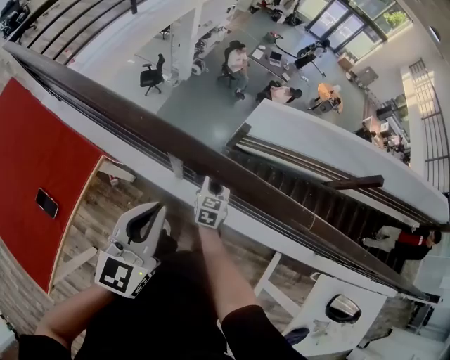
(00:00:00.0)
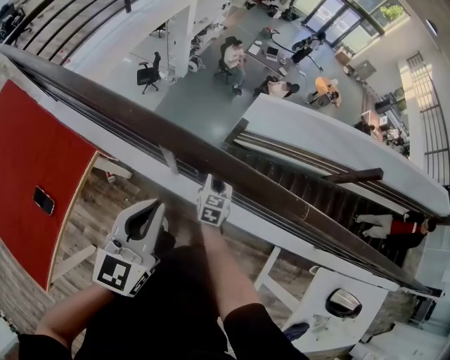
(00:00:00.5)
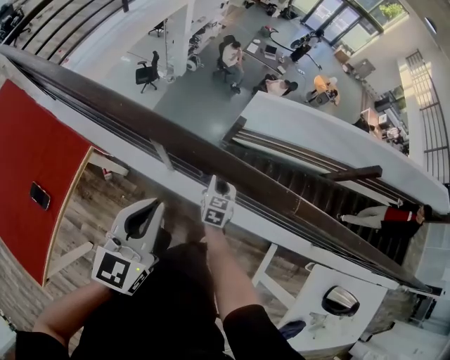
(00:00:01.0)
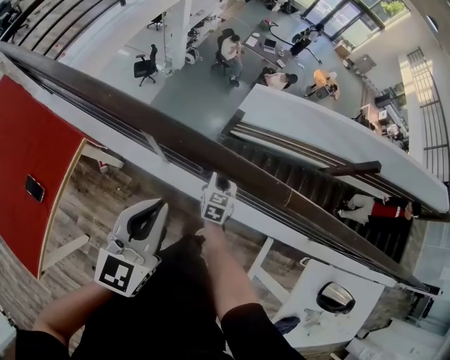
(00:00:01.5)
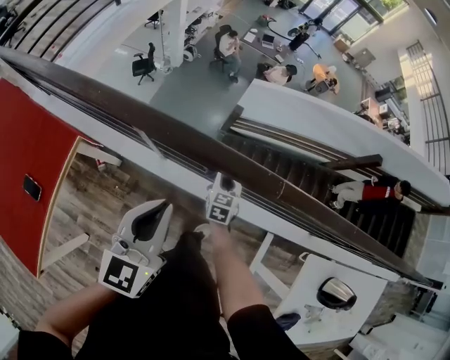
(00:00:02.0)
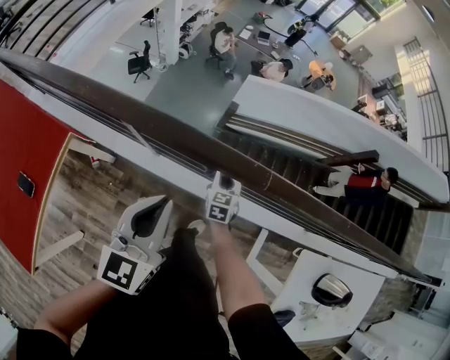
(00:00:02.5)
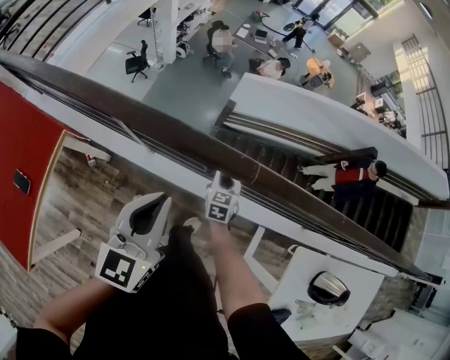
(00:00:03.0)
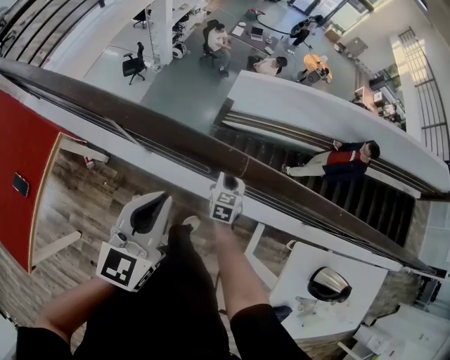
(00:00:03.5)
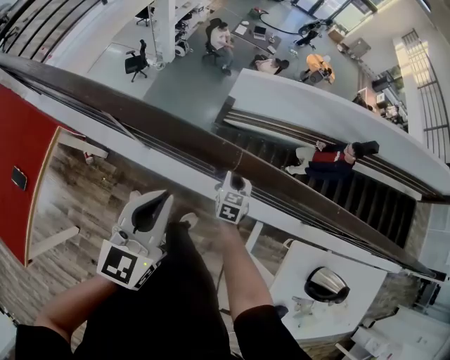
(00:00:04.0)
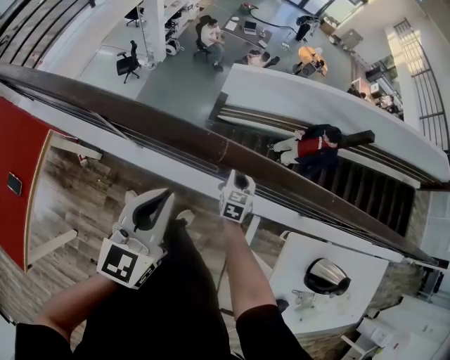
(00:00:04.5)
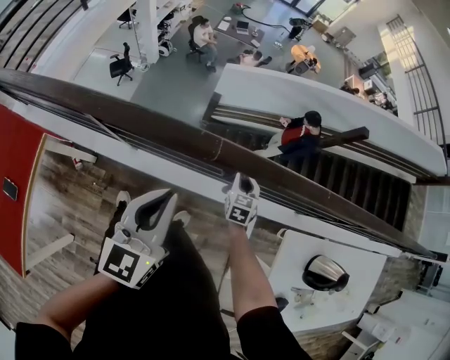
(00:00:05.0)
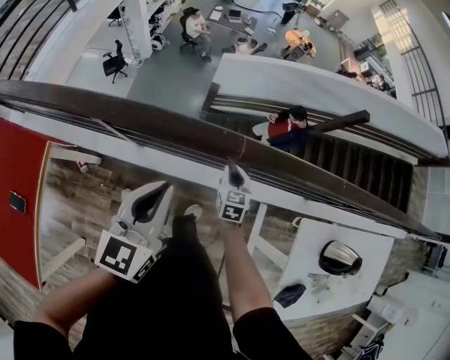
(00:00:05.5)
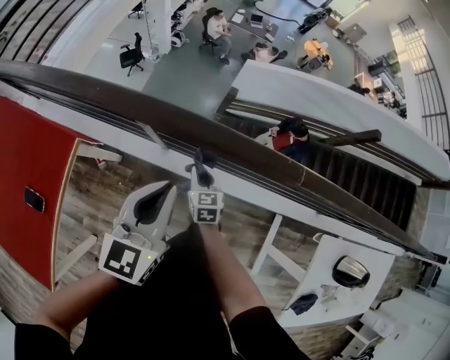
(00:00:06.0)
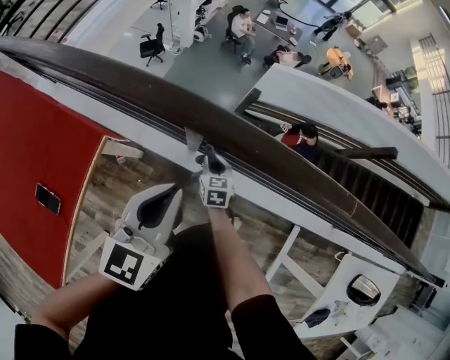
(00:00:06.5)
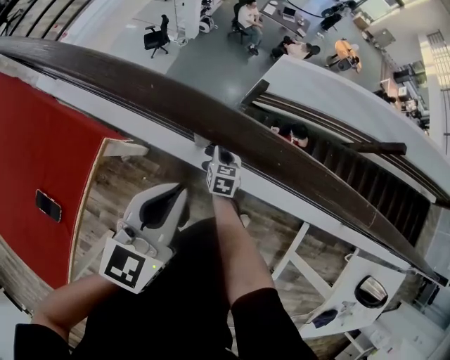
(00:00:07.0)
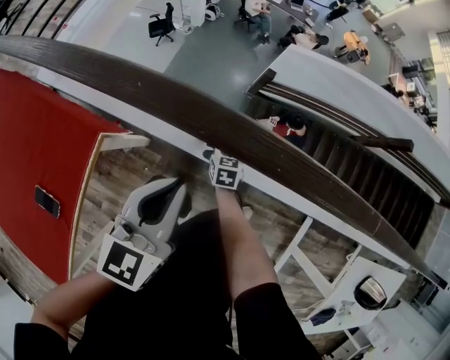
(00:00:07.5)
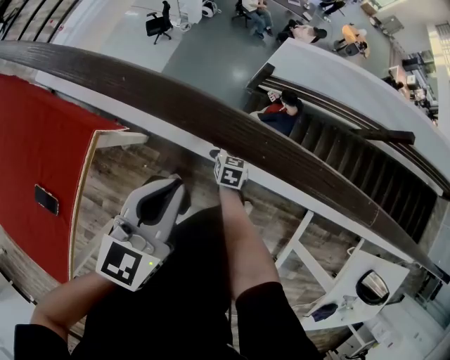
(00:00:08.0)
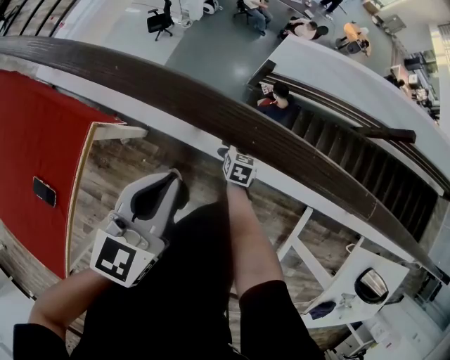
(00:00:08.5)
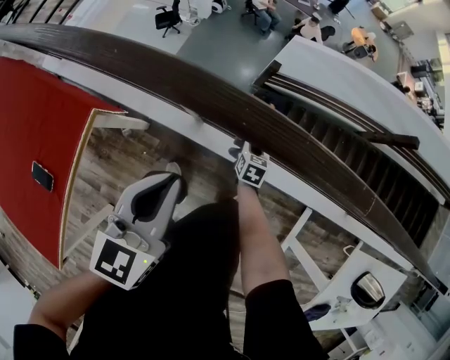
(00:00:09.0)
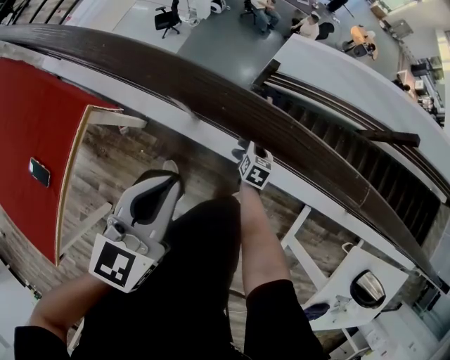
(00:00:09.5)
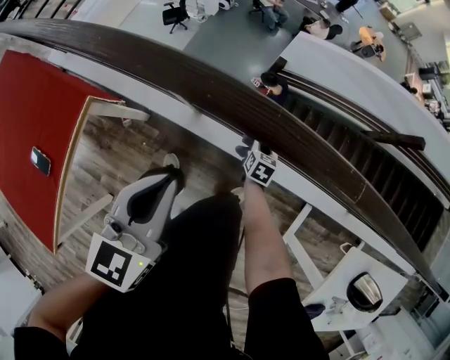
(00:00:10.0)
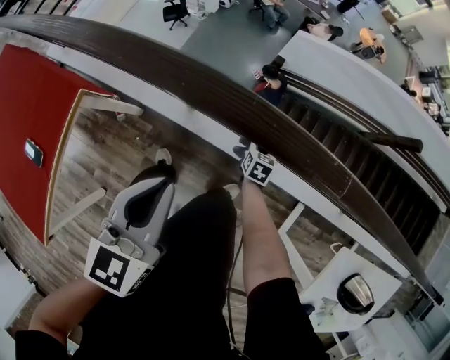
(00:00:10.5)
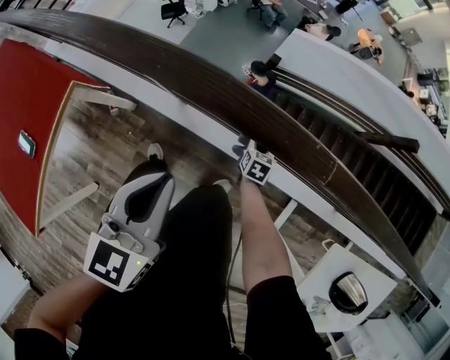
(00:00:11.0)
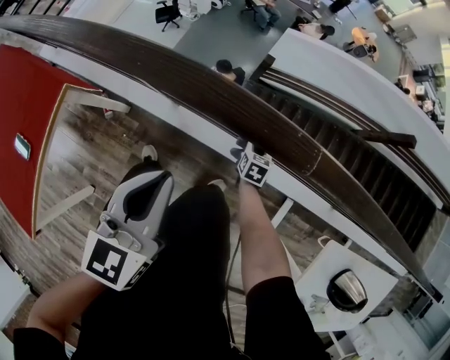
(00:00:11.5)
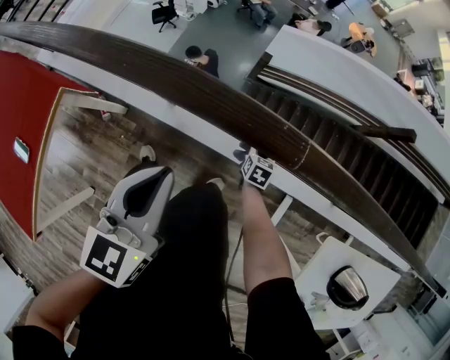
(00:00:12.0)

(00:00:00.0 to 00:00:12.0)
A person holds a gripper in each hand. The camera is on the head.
00:00:00.0 - 00:00:02.0: Both grippers travel together to the right, some 15 cm.
00:00:02.0 - 00:00:04.0: Both grippers travel together to the right, approximately 10 cm.
00:00:04.0 - 00:00:06.0: The right gripper shifts about 25 cm to the left. The left gripper shifts roughly 15 cm to the left.
00:00:06.0 - 00:00:08.0: The left gripper is displaced to the left and downward by some 10 cm; the right gripper shifts roughly 15 cm downward and forward.
00:00:08.0 - 00:00:10.0: The left gripper is displaced to the right by approximately 5 cm, while the right gripper travels to the right by roughly 15 cm.
00:00:10.0 - 00:00:12.0: Both grippers travel together to the right, some 10 cm.

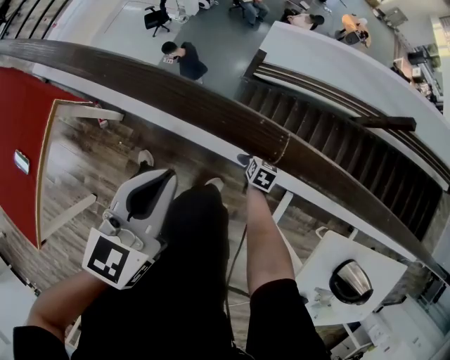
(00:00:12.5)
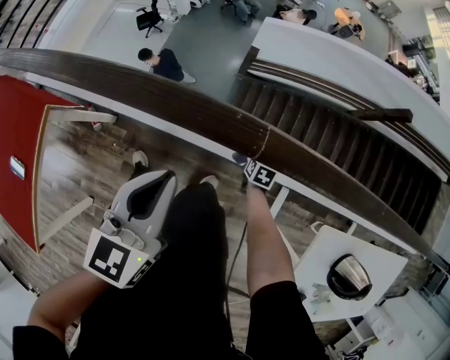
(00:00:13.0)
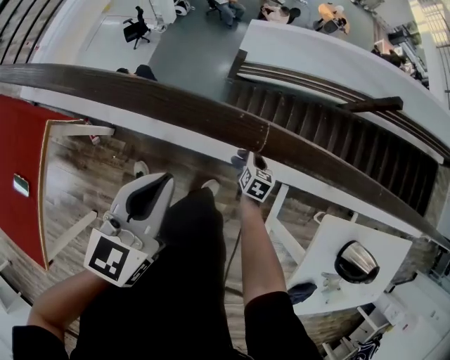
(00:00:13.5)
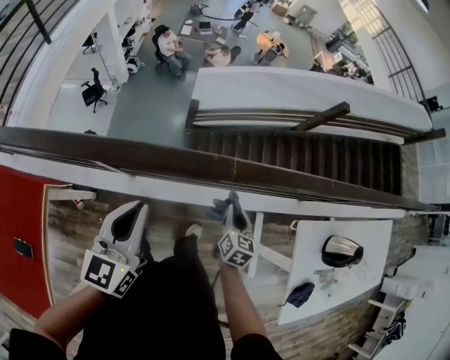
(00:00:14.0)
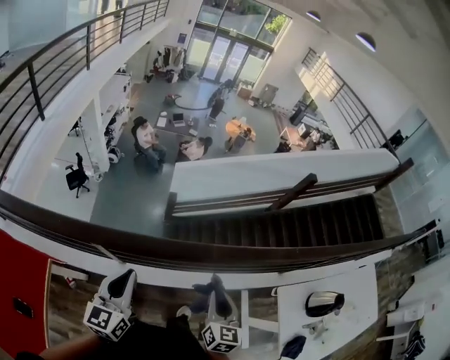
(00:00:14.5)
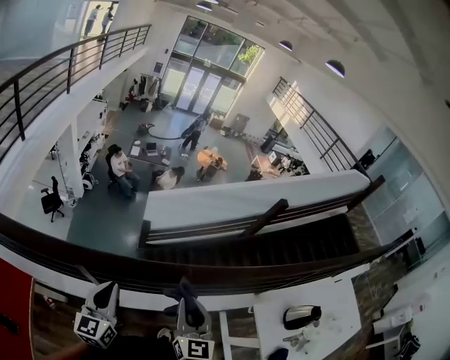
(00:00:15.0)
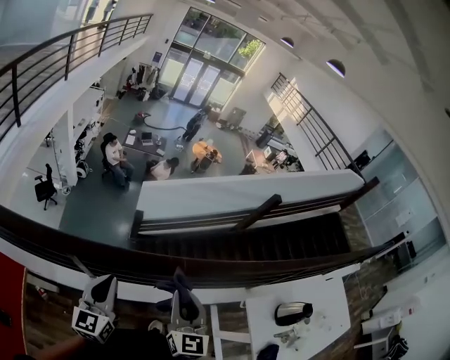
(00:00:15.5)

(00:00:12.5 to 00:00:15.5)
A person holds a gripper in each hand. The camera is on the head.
00:00:12.5 - 00:00:14.0: The left gripper moves some 5 cm; the right gripper shifts approximately 25 cm upward and backward, and rotates roughly 30 degrees.
00:00:14.0 - 00:00:15.5: The right gripper shifts approximately 25 cm upward, and tips its fingers upward by some 30 degrees.

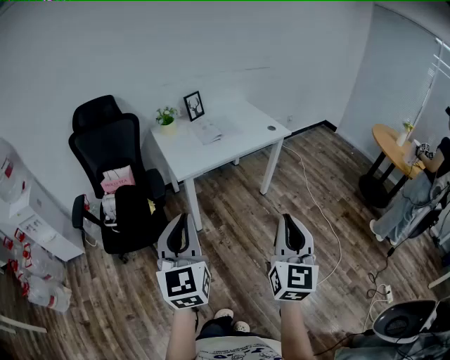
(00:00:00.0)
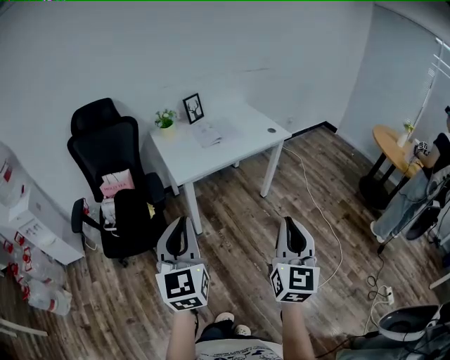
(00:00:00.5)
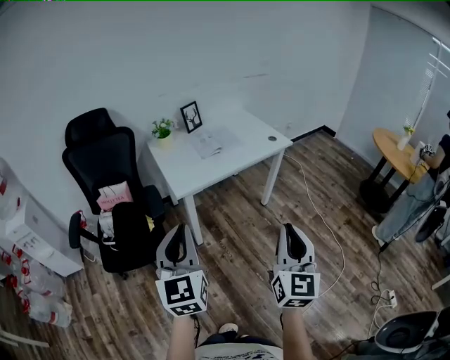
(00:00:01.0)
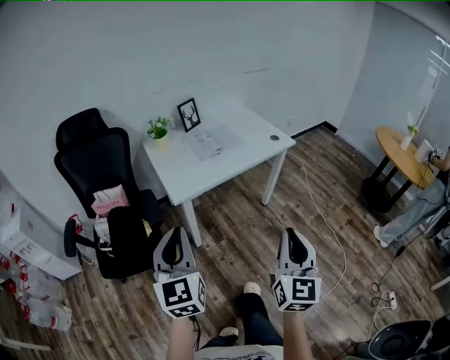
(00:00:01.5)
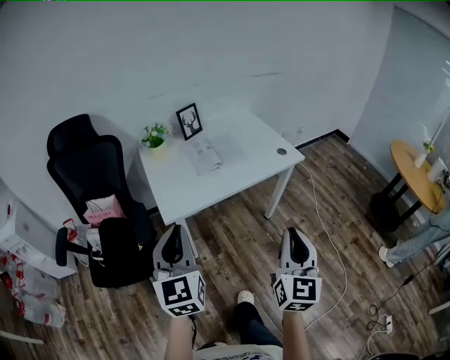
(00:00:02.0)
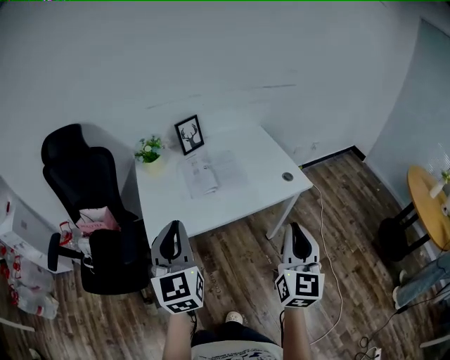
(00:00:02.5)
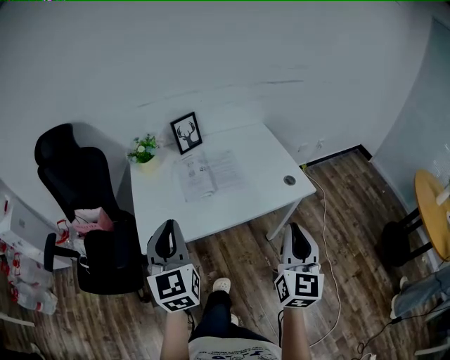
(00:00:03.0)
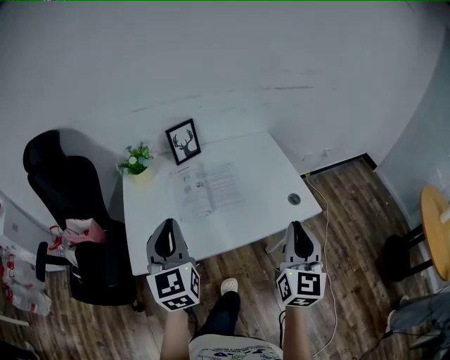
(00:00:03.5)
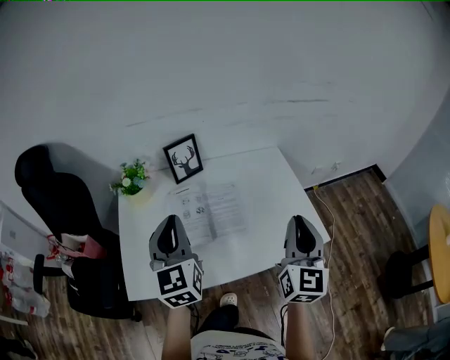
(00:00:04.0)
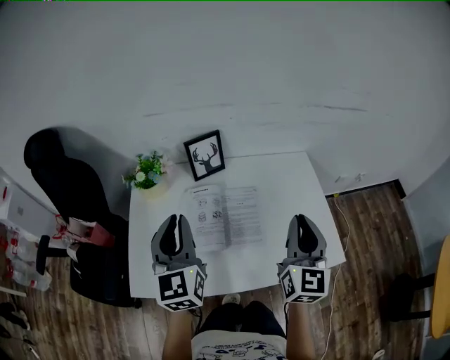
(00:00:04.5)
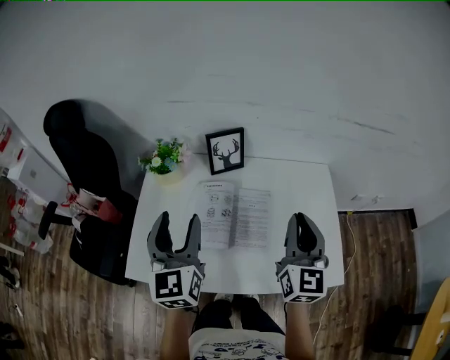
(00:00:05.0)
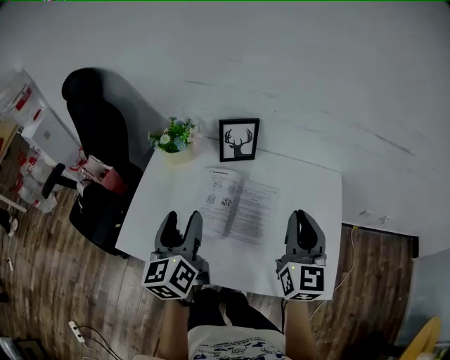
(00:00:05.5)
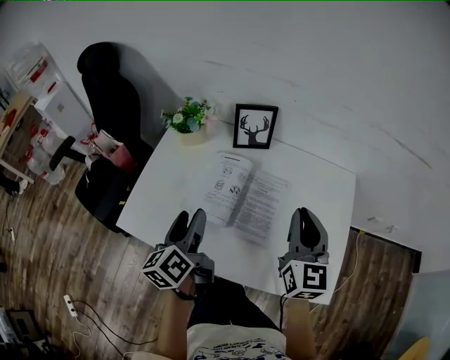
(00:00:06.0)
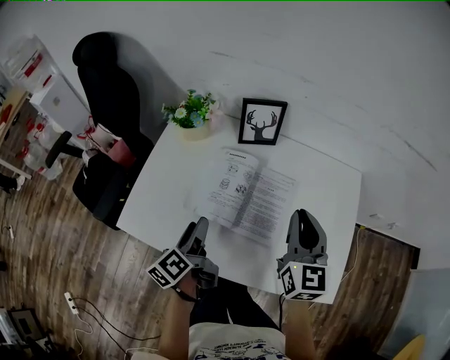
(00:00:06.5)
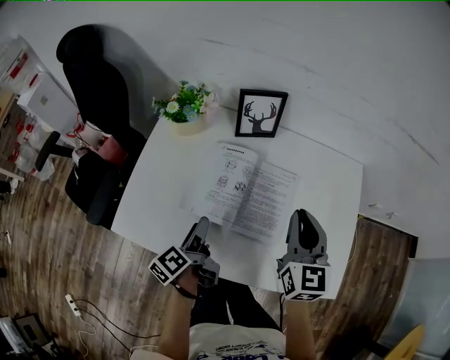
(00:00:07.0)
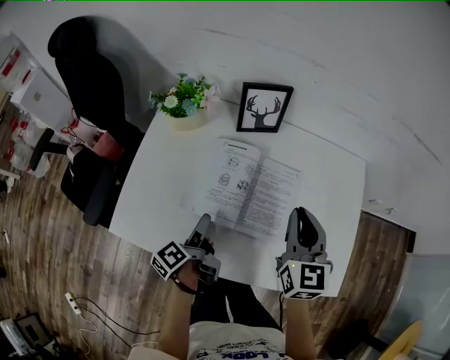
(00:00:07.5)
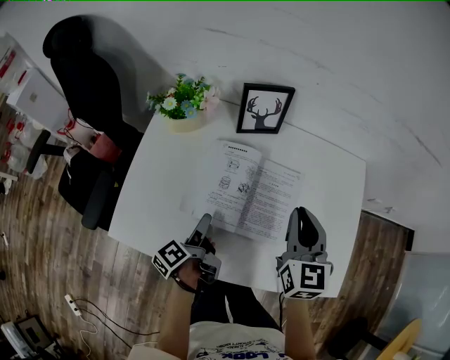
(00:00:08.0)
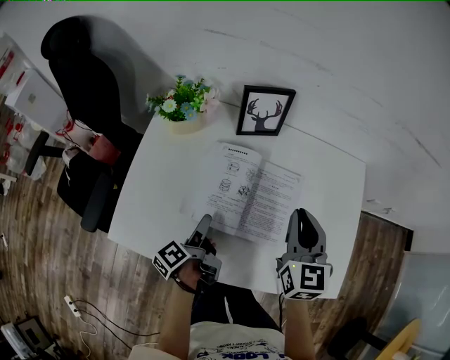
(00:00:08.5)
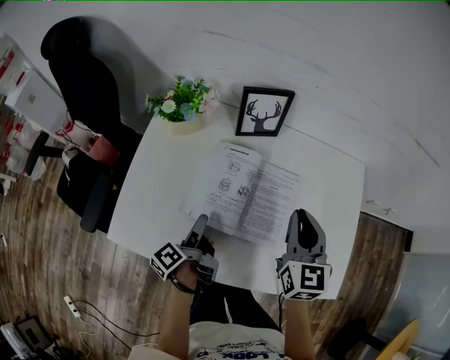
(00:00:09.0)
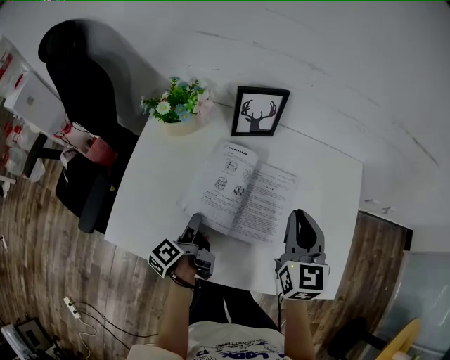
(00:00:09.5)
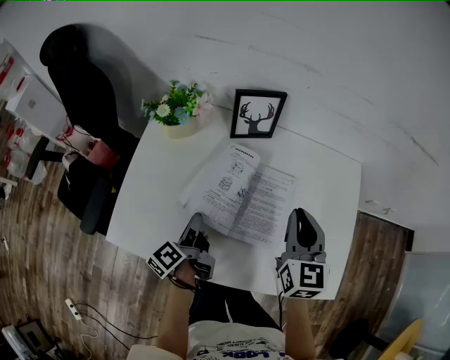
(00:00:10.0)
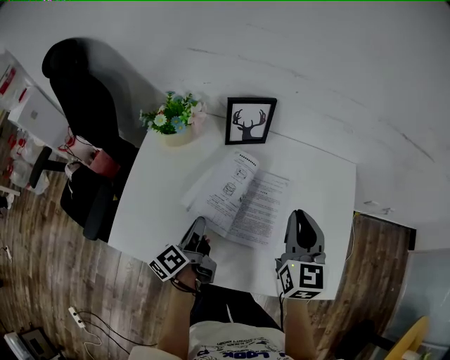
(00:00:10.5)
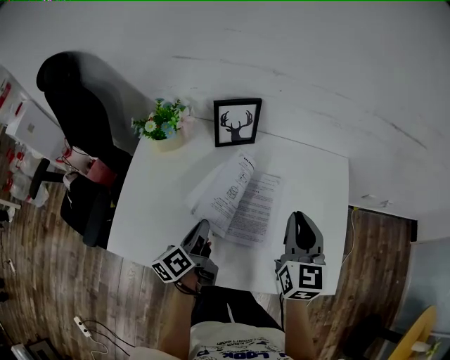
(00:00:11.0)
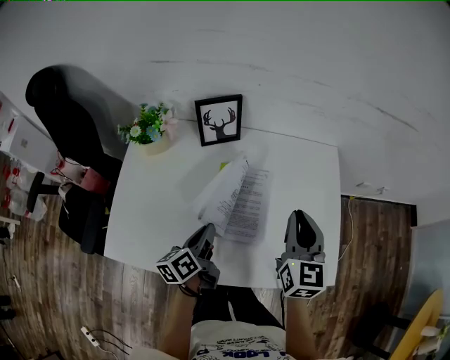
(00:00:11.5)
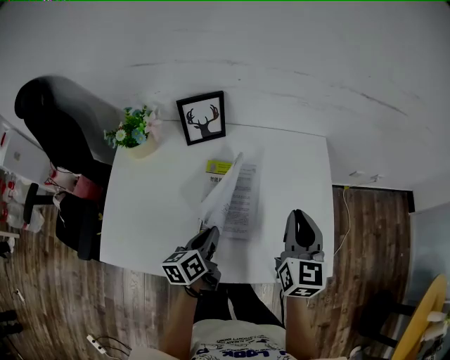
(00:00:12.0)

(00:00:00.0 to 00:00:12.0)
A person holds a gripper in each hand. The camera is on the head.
00:00:00.0 - 00:00:02.0: Both grippers move forward, approximately 30 cm.
00:00:02.0 - 00:00:04.0: Both grippers are carried forward, some 50 cm.
00:00:04.0 - 00:00:06.0: The right gripper changes place by approximately 20 cm, and swivels approximately 40 degrees. Meanwhile the left gripper travels downward by some 15 cm, rotates around the line of its fingers by roughly 40 degrees, counterclockwise from behind, and opens up.
00:00:06.0 - 00:00:08.0: The left gripper travels downward by about 20 cm, and changes its angle by some 40 degrees, while the right gripper is displaced downward and to the left by about 10 cm.
00:00:08.0 - 00:00:10.0: The left gripper closes up.
00:00:10.0 - 00:00:12.0: The grippers both shift to the right by about 15 cm. The left gripper rotates roughly 40 degrees.
